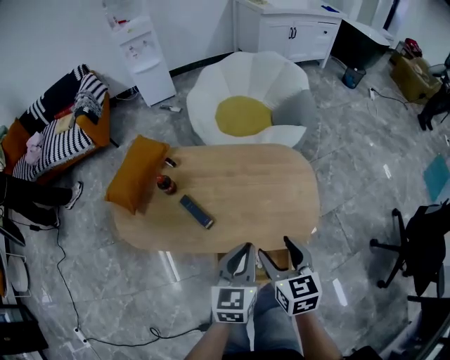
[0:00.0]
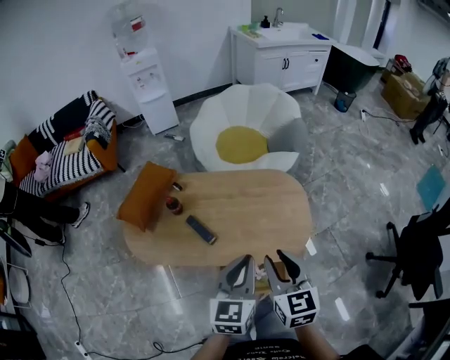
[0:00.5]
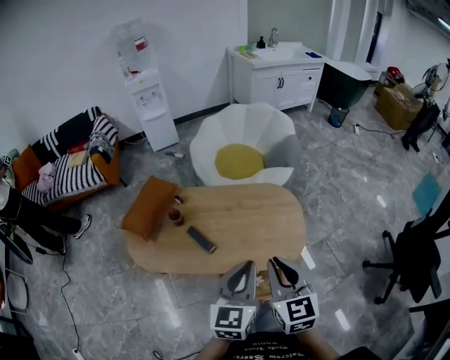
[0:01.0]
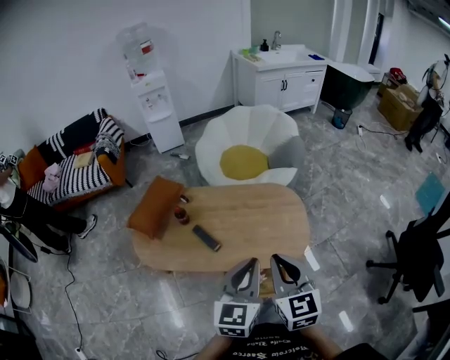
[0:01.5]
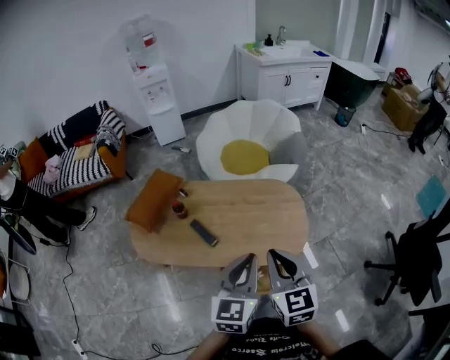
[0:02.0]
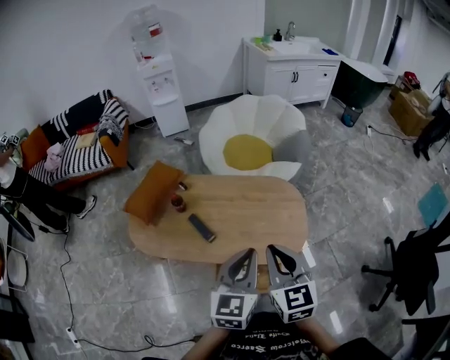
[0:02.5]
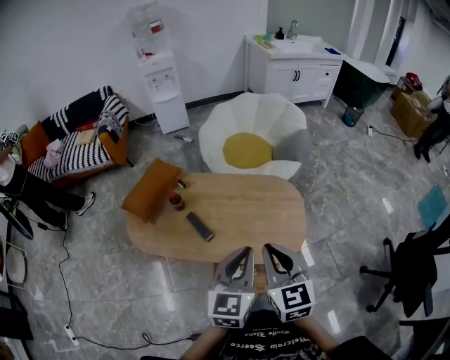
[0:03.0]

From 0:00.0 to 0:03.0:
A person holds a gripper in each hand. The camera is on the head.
From 0:00.0 to 0:01.5: The right gripper goes approximately 15 cm upward, and closes up, while the left gripper travels upward and backward by about 15 cm.
From 0:01.5 to 0:03.0: The grippers stay close to where they were, moving slightly.

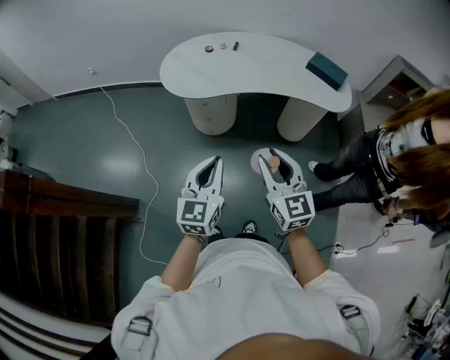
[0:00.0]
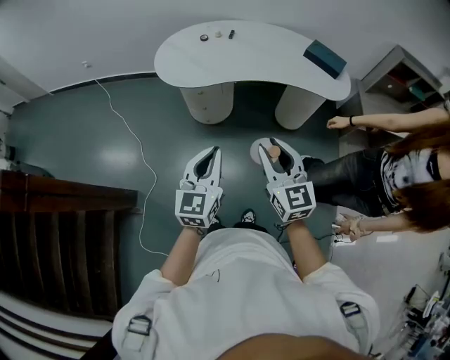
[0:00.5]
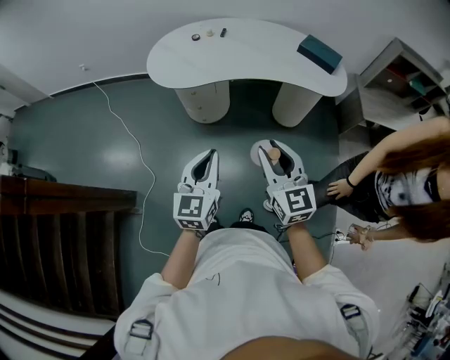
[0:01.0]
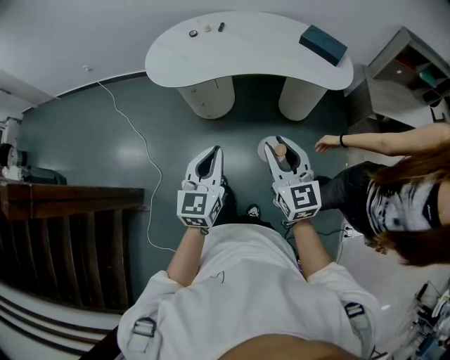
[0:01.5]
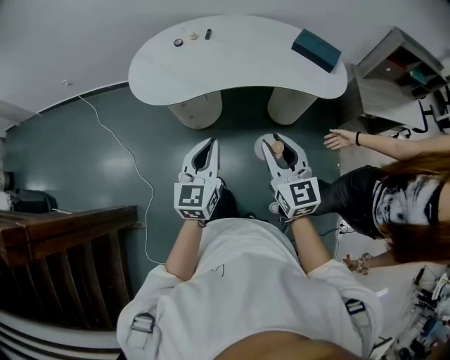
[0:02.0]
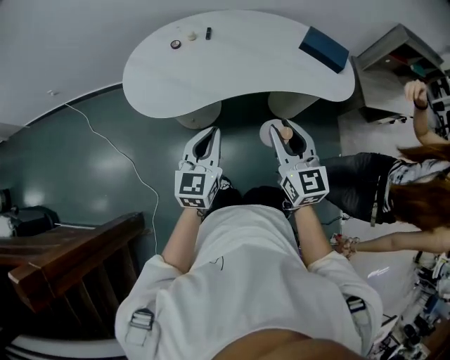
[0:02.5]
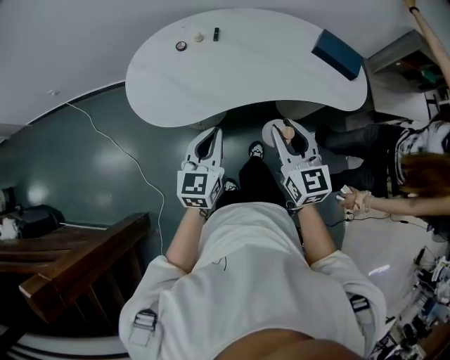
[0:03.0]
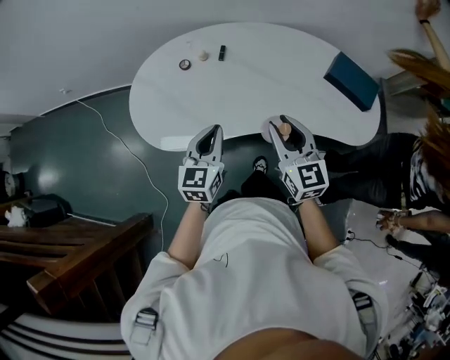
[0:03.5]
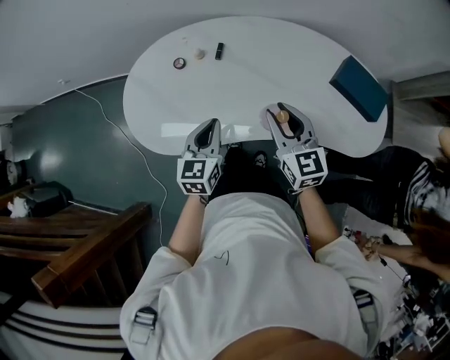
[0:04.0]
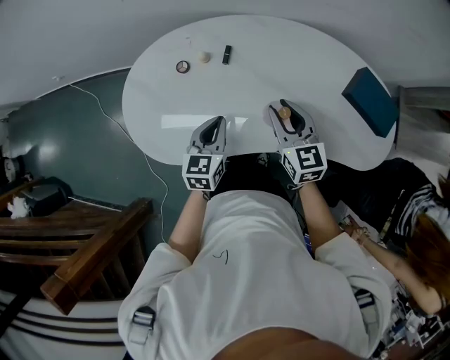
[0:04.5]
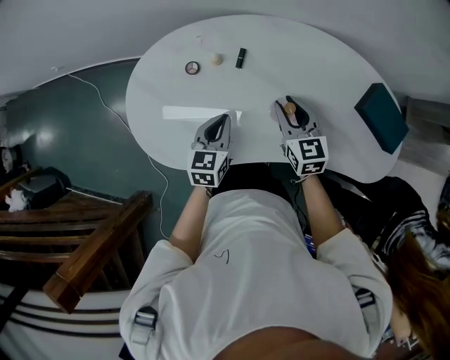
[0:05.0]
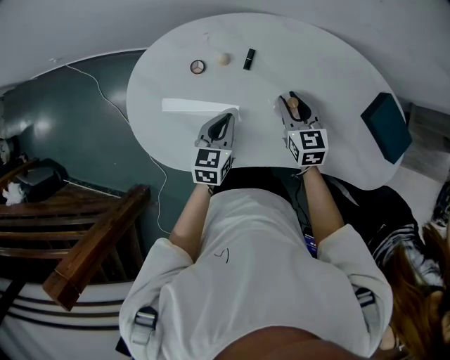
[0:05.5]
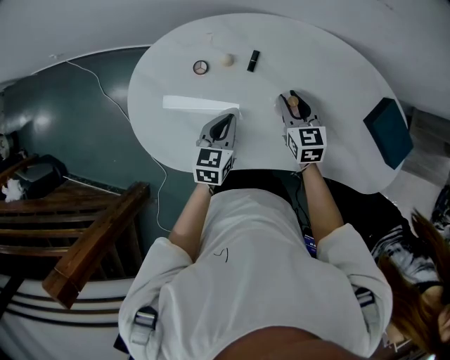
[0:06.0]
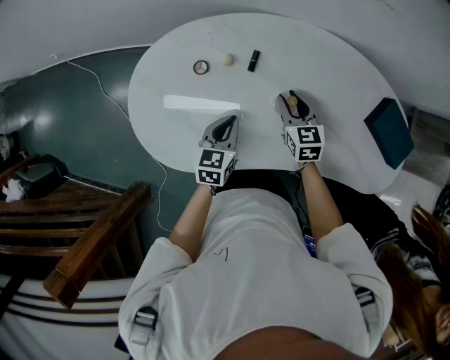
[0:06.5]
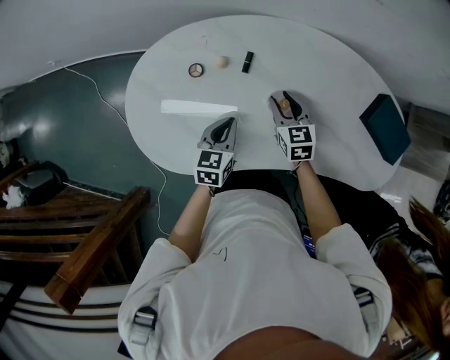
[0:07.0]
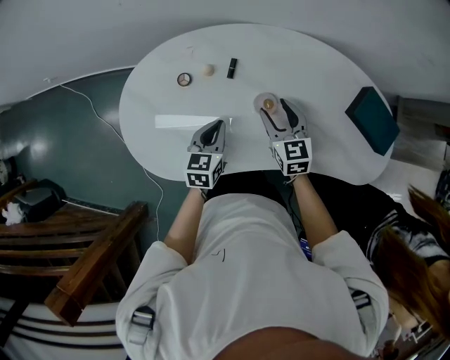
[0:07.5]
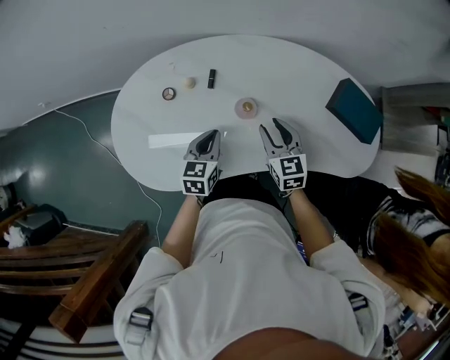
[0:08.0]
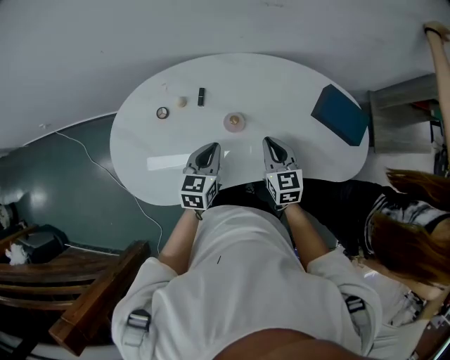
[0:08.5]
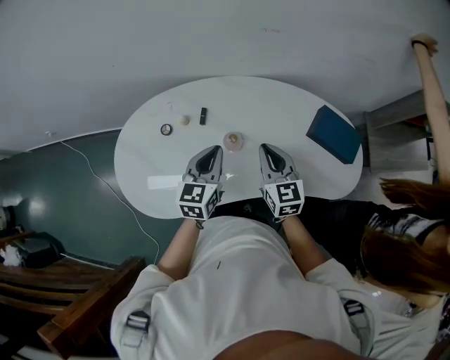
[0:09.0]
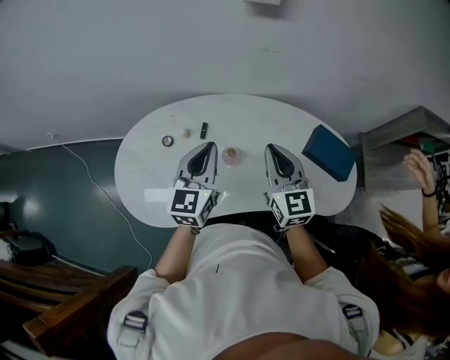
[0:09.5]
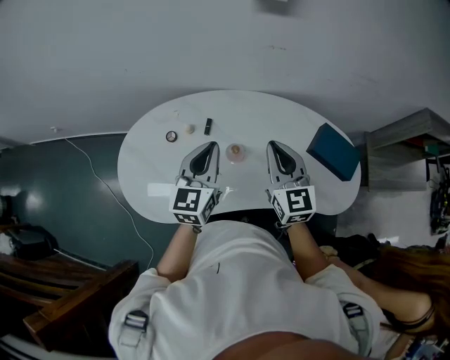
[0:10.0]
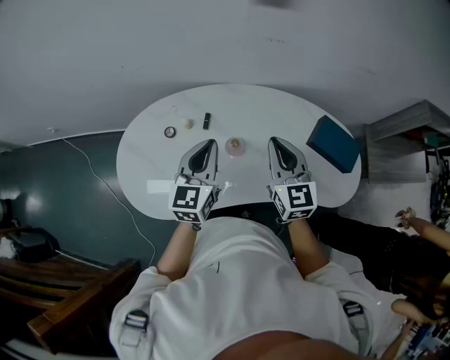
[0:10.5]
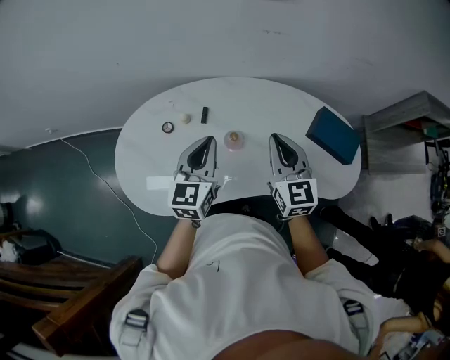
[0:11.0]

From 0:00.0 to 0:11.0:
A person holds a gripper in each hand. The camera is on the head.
From 0:00.0 to 0:02.0: Both grippers move forward and to the right, some 15 cm.
From 0:02.0 to 0:03.5: The two grippers go about 35 cm forward.
From 0:03.5 to 0:05.5: Both grippers move forward and downward, roughly 30 cm.
From 0:05.5 to 0:07.5: The right gripper opens its fingers.
From 0:07.5 to 0:09.0: Both grippers move upward and to the right, some 15 cm. The right gripper closes.
From 0:09.0 to 0:11.0: The grippers both shift upward by some 5 cm.

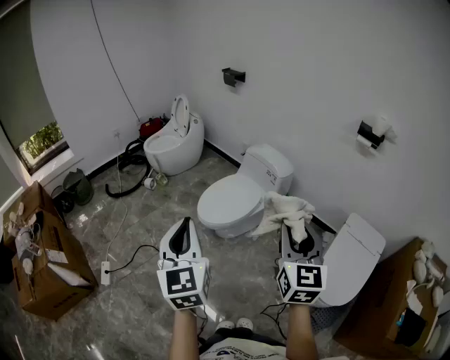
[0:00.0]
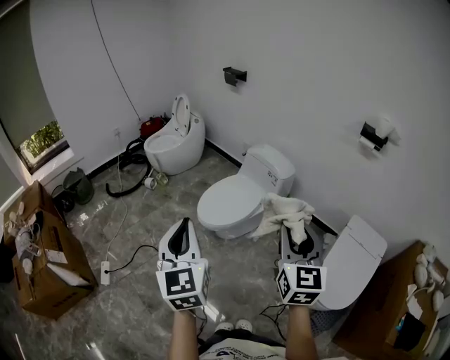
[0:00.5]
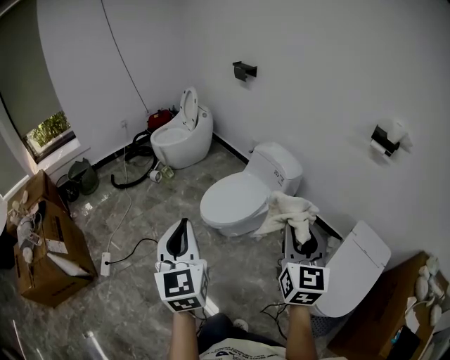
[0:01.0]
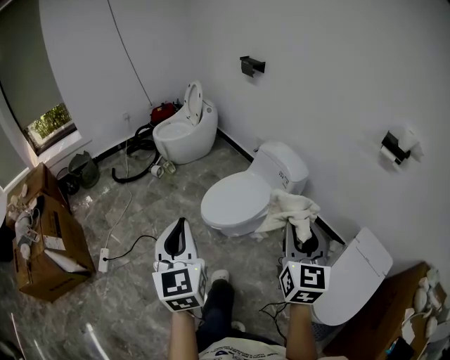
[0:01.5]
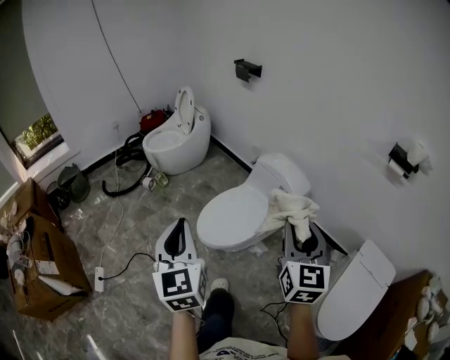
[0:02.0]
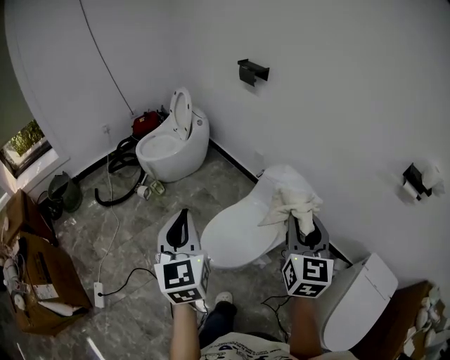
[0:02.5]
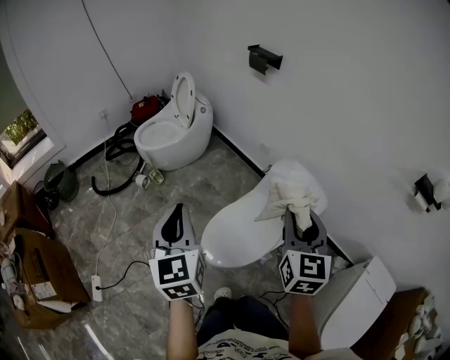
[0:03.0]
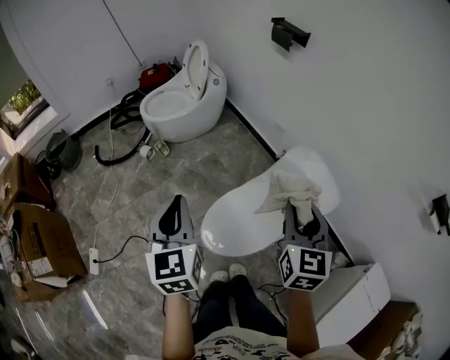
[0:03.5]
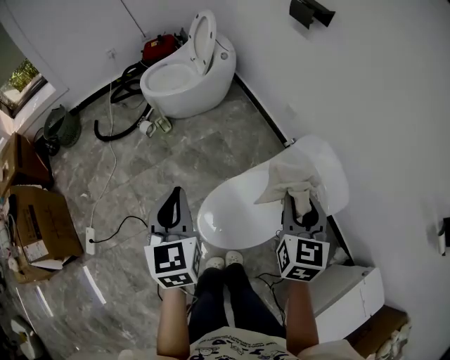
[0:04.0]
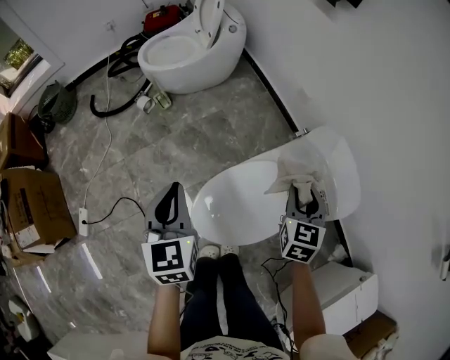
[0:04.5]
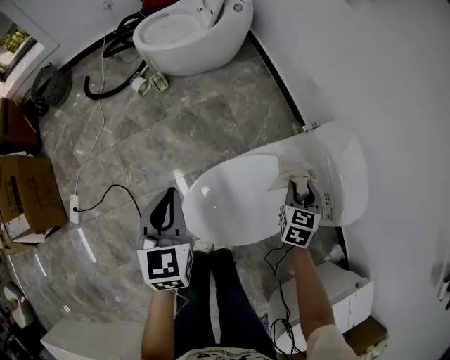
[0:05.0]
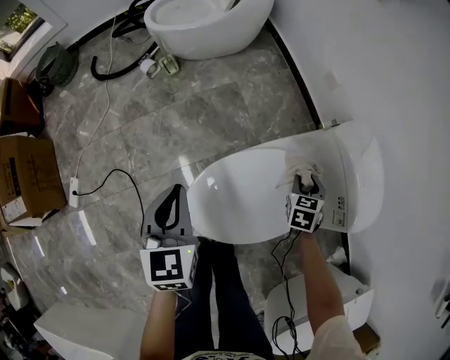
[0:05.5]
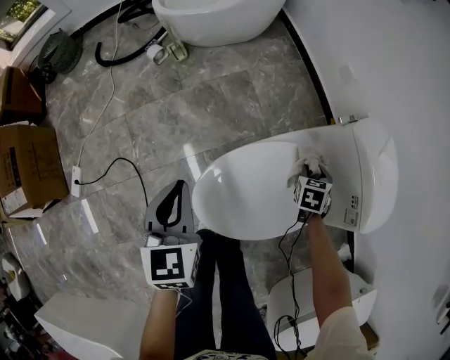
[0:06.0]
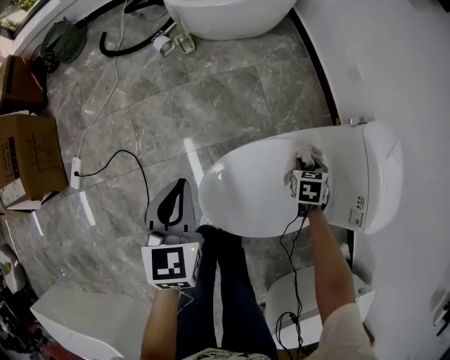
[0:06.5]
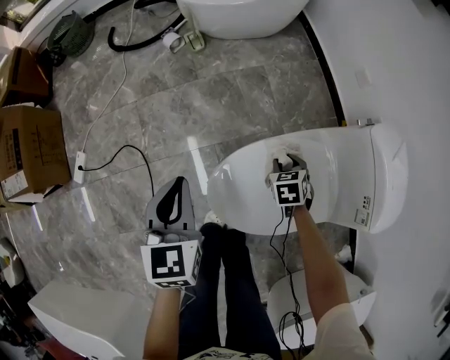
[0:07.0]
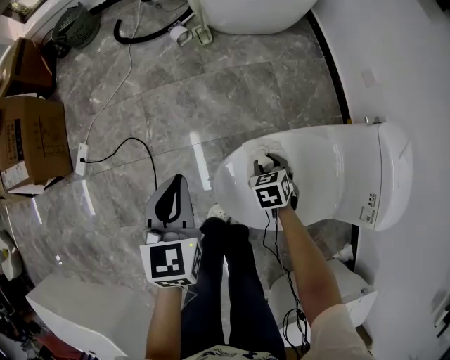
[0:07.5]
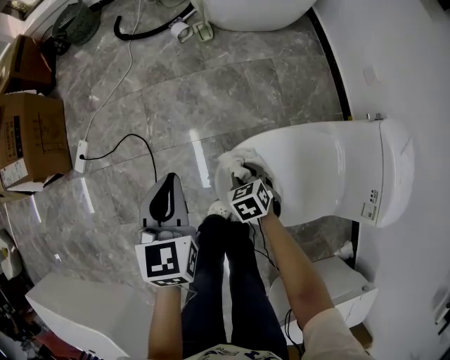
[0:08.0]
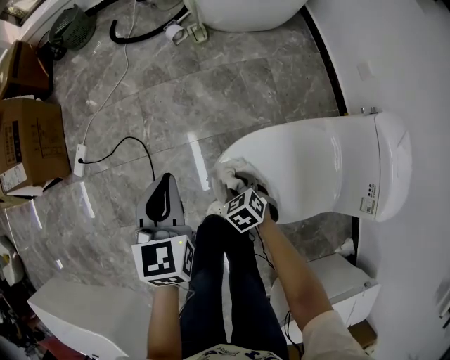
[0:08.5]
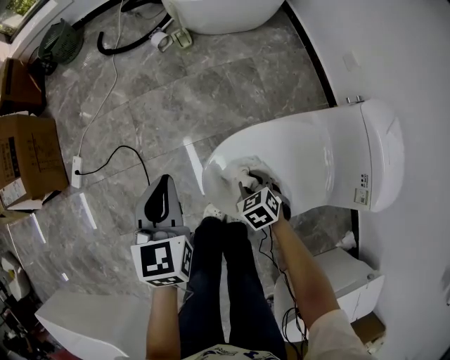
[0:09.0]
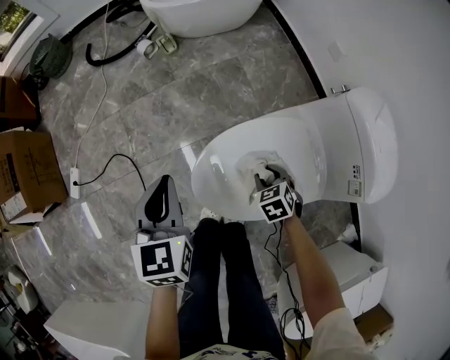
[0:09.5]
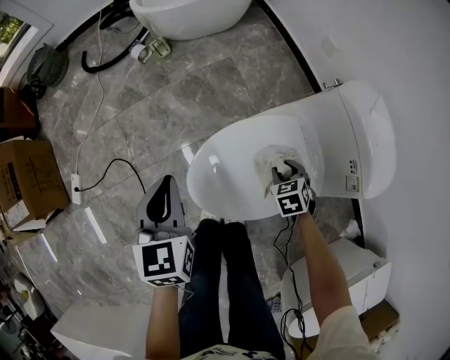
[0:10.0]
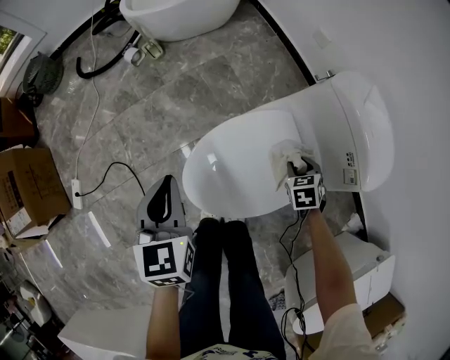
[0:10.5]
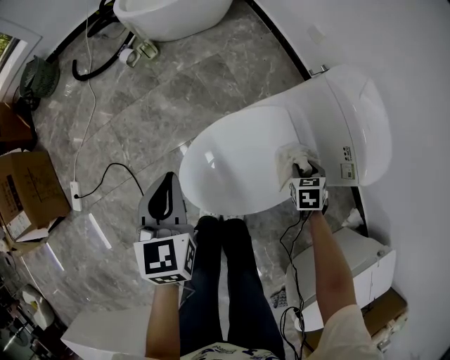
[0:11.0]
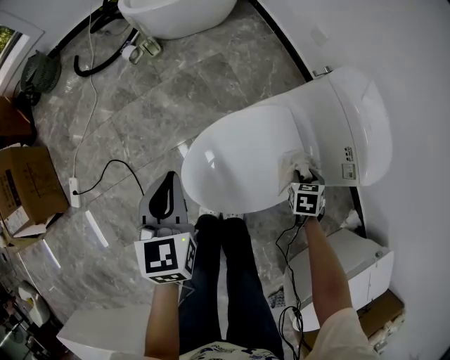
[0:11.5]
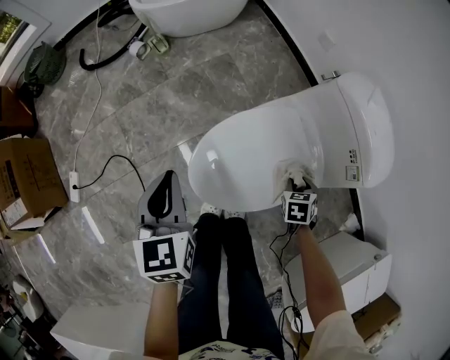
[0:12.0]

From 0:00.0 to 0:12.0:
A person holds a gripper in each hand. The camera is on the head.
From 0:00.0 to 0:02.0: The two grippers go about 25 cm forward.
From 0:02.0 to 0:04.0: Both grippers travel together forward and downward, roughly 40 cm.
From 0:04.0 to 0:06.0: The right gripper moves downward, approximately 40 cm, and tips its fingers downward by approximately 40 degrees, while the left gripper goes about 25 cm downward.
From 0:06.0 to 0:08.0: The left gripper changes place by about 10 cm, while the right gripper shifts by roughly 35 cm, and changes its angle by approximately 40 degrees.
From 0:08.0 to 0:10.0: The left gripper moves about 10 cm; the right gripper changes place by about 25 cm.
From 0:10.0 to 0:12.0: The right gripper is displaced backward and to the right by roughly 10 cm, and rotates roughly 20 degrees.

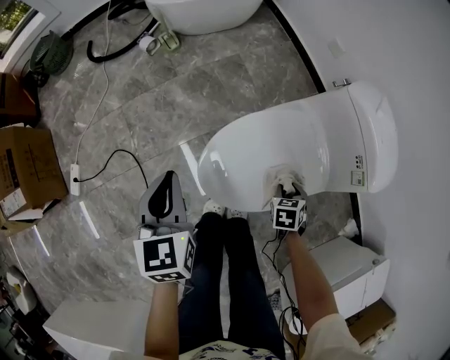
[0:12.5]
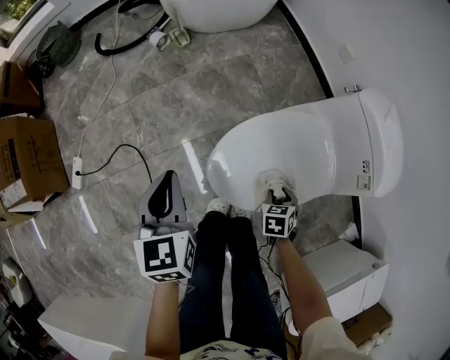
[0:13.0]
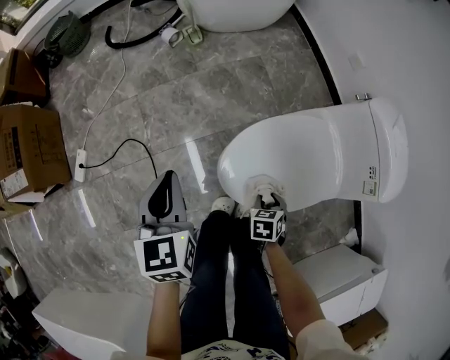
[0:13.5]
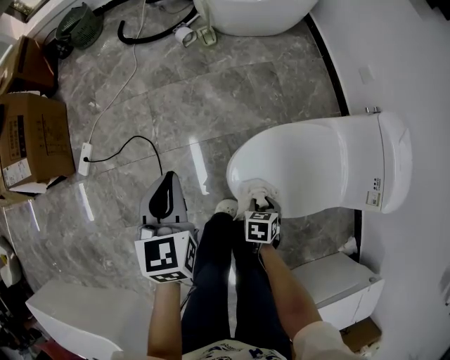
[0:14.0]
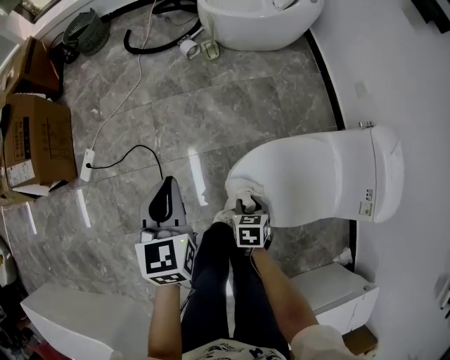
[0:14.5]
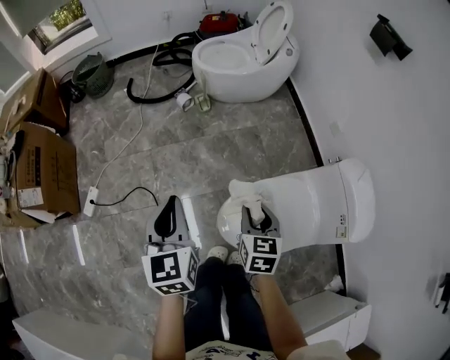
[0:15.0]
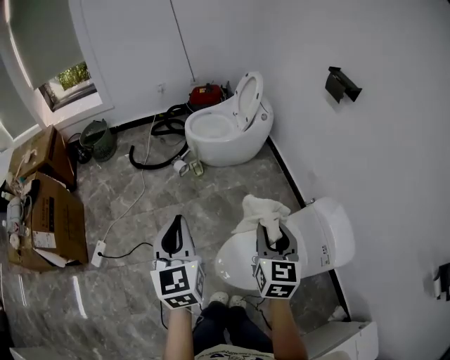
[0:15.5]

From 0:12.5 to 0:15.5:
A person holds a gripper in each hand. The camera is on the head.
From 0:12.5 to 0:14.0: The left gripper shifts roughly 10 cm to the left. Meanwhile the right gripper moves to the left, about 20 cm.
From 0:14.0 to 0:15.5: The left gripper moves upward, roughly 30 cm, and turns by approximately 20 degrees. Meanwhile the right gripper is displaced upward by roughly 50 cm, and tips its fingers upward by approximately 50 degrees.
